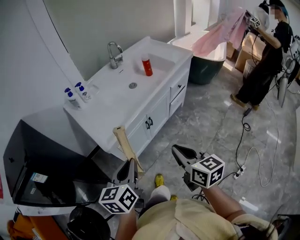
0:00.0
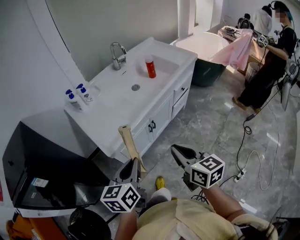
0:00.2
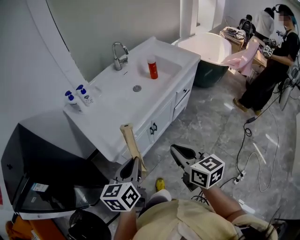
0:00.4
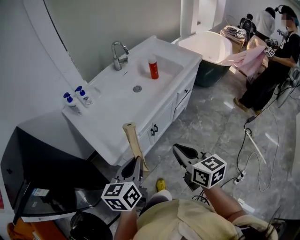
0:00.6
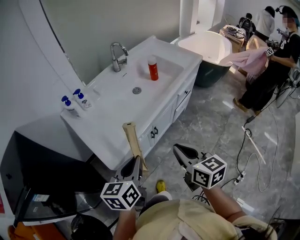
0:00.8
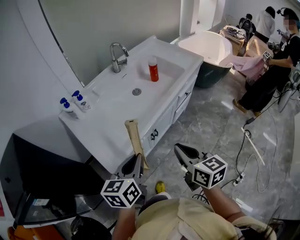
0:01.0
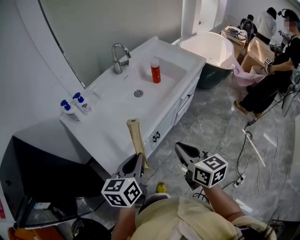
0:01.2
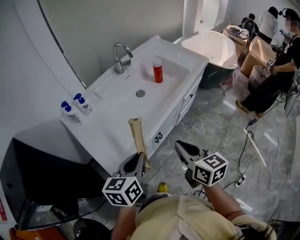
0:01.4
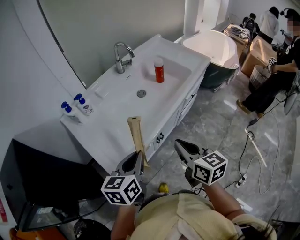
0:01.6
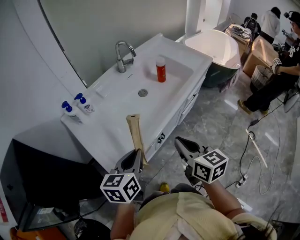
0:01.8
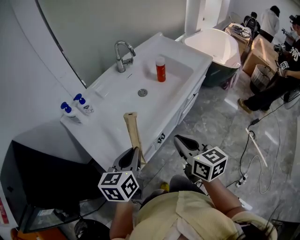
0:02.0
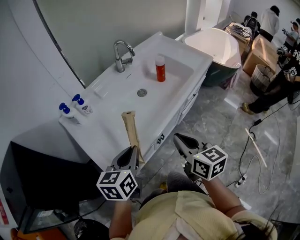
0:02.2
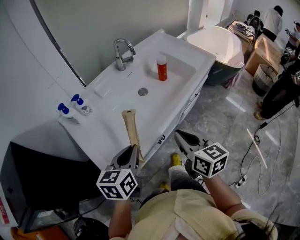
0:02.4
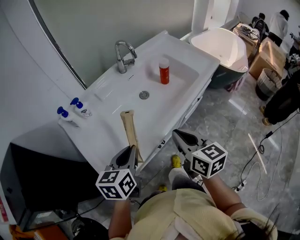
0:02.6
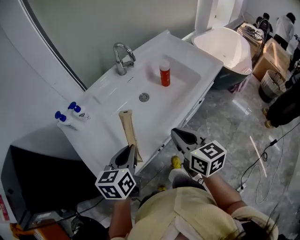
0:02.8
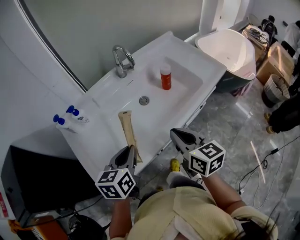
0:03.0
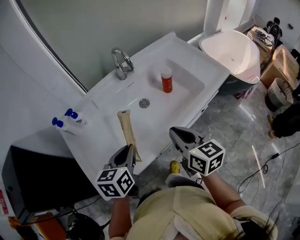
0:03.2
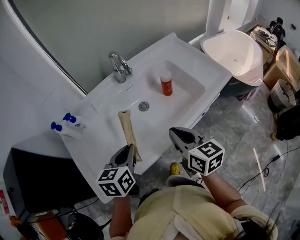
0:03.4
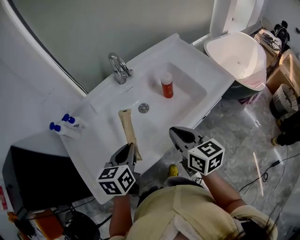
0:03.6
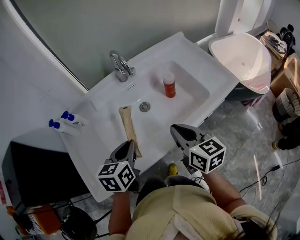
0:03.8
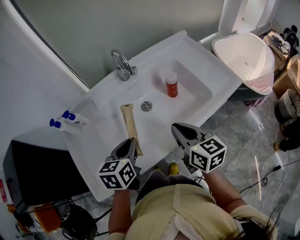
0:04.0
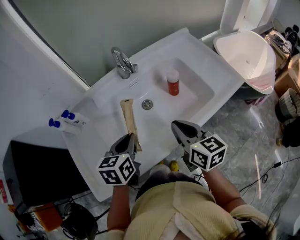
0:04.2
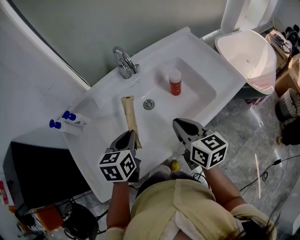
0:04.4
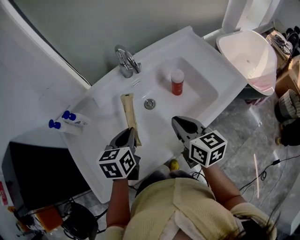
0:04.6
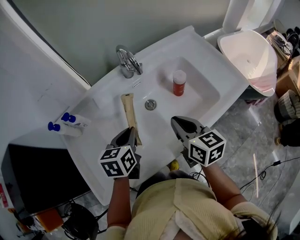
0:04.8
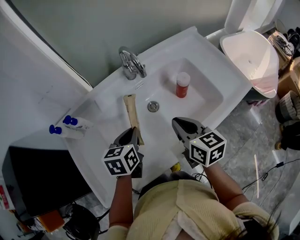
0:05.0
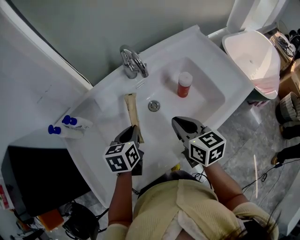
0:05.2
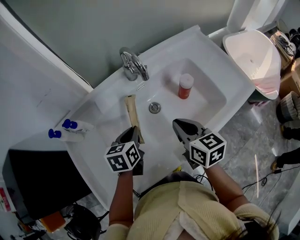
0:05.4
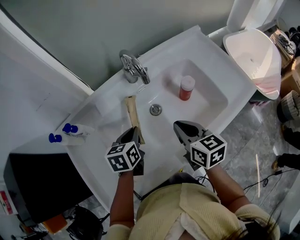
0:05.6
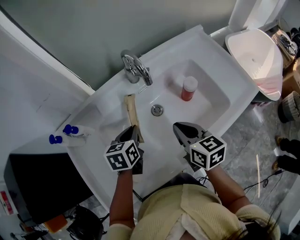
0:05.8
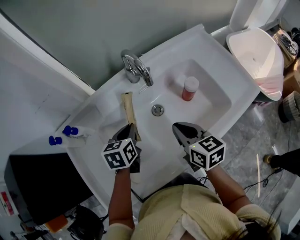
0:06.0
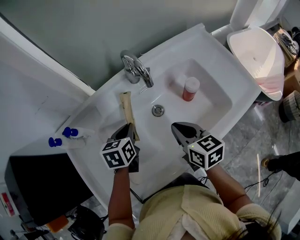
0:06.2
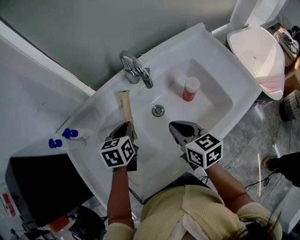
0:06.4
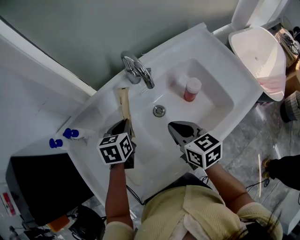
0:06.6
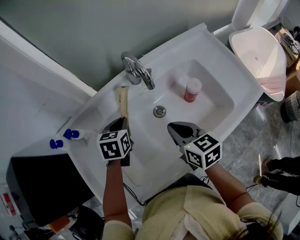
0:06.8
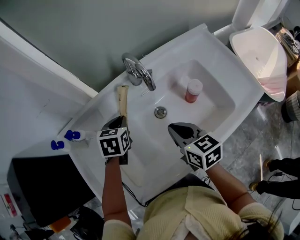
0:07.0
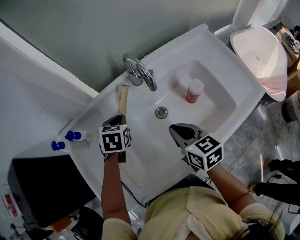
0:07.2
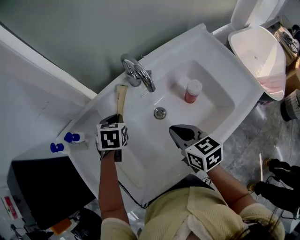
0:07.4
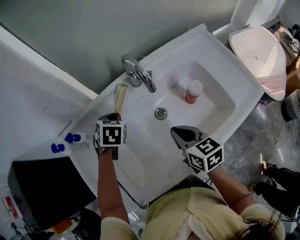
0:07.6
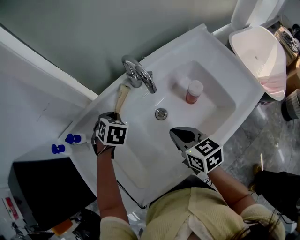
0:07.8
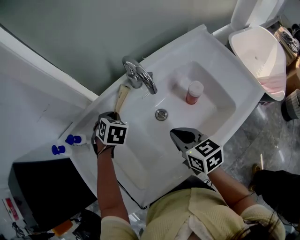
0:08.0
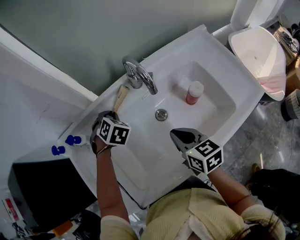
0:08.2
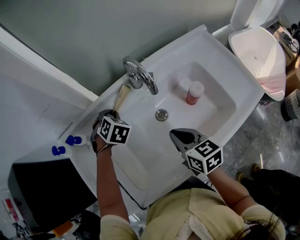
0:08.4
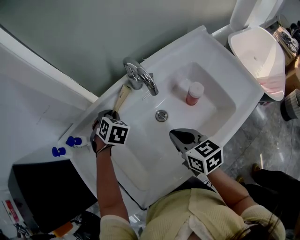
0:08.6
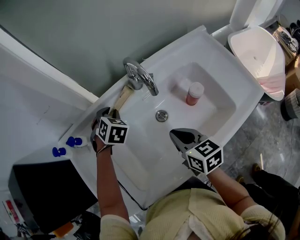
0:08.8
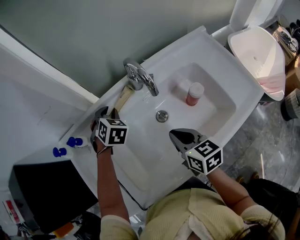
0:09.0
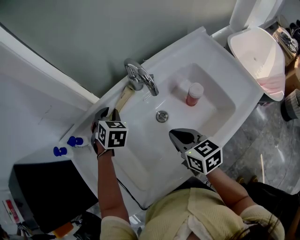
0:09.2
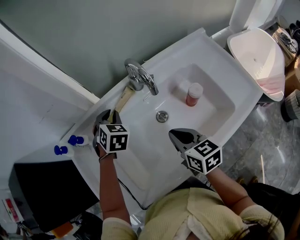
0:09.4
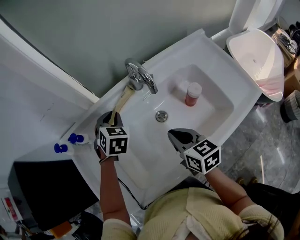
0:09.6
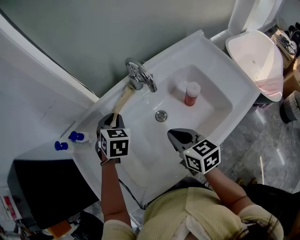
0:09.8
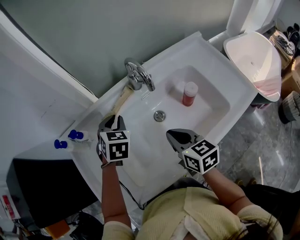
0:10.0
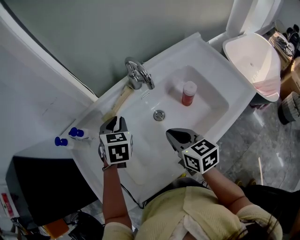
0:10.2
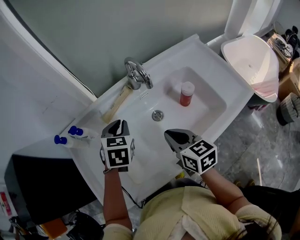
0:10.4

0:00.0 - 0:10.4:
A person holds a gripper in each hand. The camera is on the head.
0:00.0 - 0:01.4: Both grippers travel together forward, roughly 20 cm.
0:01.4 - 0:03.0: The two grippers go approximately 15 cm forward.
0:03.0 - 0:04.4: The grippers both shift forward and to the right by about 15 cm.
0:04.4 - 0:06.0: The grippers both shift forward and downward by roughly 10 cm.
0:06.0 - 0:07.4: The left gripper shifts about 10 cm forward, and turns by approximately 30 degrees.
0:07.4 - 0:09.0: The left gripper goes roughly 5 cm forward, and turns by about 30 degrees.
0:09.0 - 0:10.4: The left gripper shifts about 15 cm backward and upward, and turns by some 20 degrees.

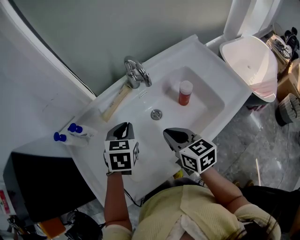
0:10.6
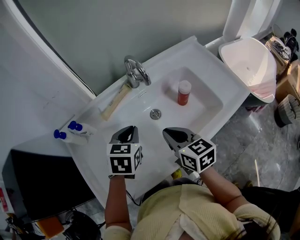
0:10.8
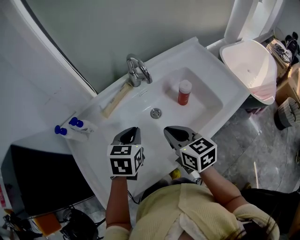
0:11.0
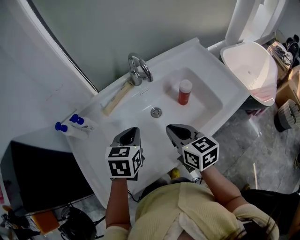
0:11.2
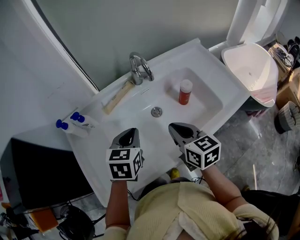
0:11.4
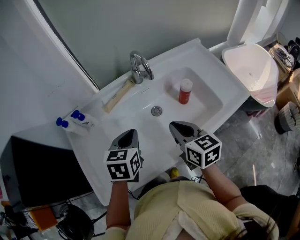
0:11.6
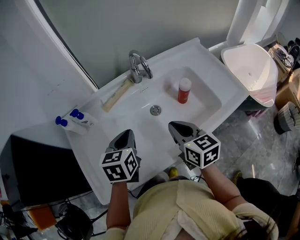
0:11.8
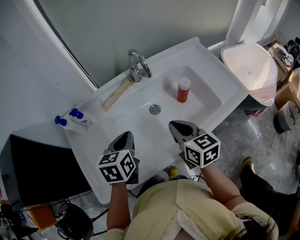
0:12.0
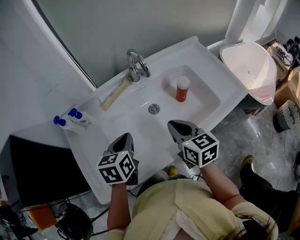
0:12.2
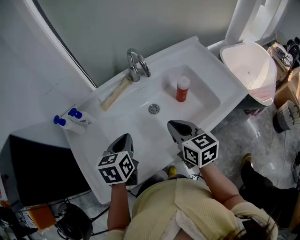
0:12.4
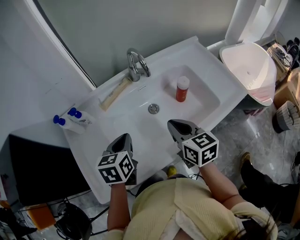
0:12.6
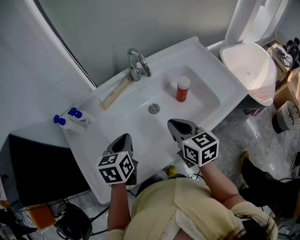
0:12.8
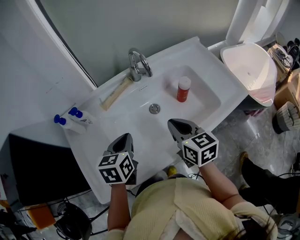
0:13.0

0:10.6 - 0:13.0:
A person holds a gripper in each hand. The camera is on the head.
0:10.6 - 0:11.8: The left gripper travels backward by some 10 cm, and turns by about 20 degrees.
0:11.8 - 0:13.0: There are only small adjustments of the grippers.

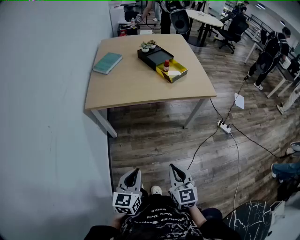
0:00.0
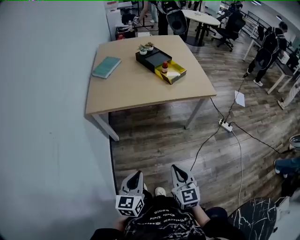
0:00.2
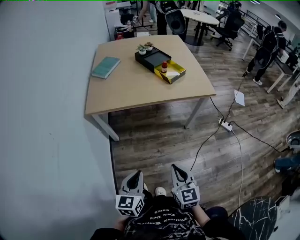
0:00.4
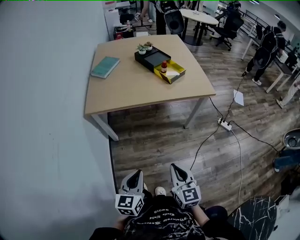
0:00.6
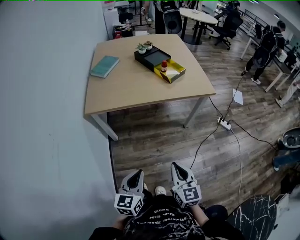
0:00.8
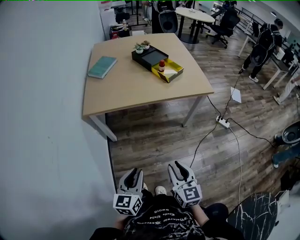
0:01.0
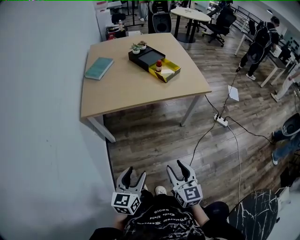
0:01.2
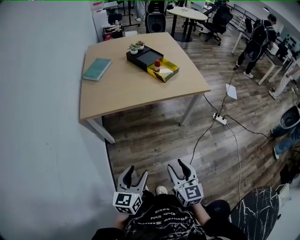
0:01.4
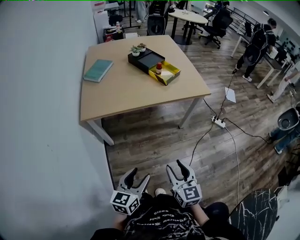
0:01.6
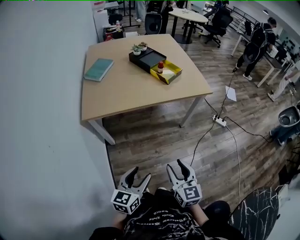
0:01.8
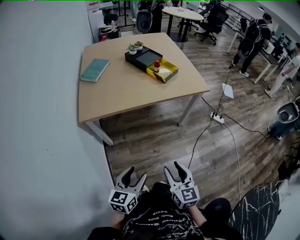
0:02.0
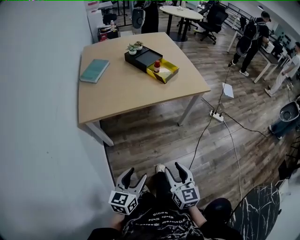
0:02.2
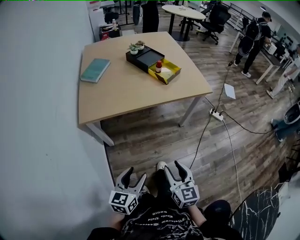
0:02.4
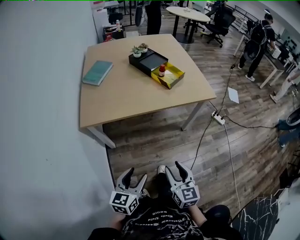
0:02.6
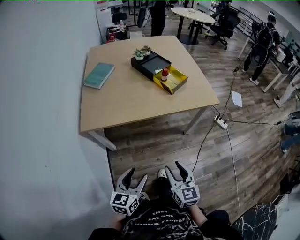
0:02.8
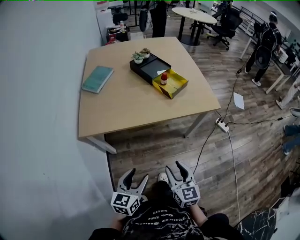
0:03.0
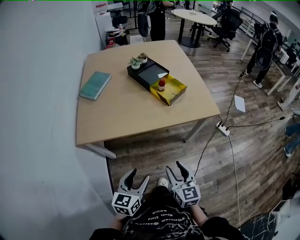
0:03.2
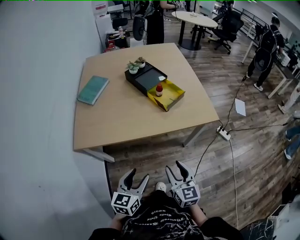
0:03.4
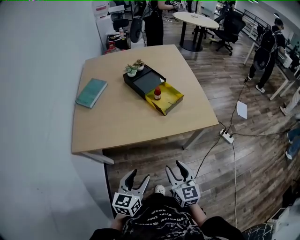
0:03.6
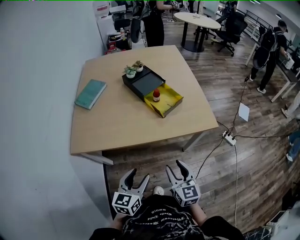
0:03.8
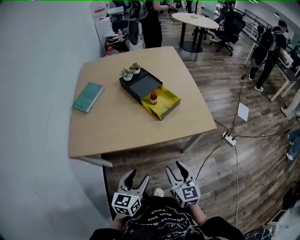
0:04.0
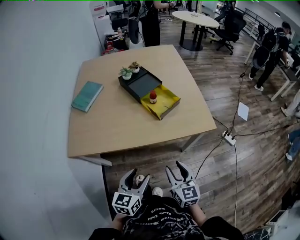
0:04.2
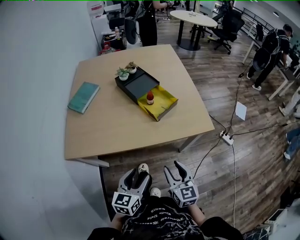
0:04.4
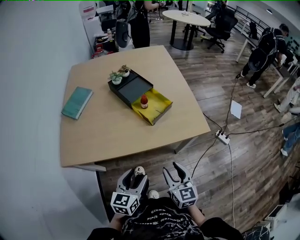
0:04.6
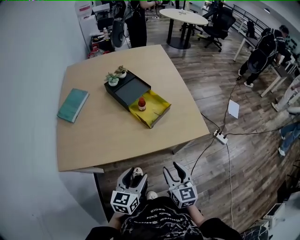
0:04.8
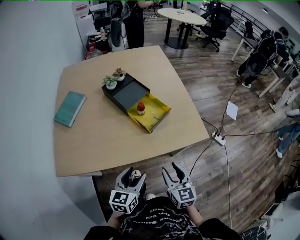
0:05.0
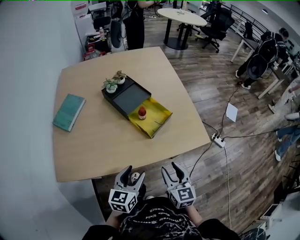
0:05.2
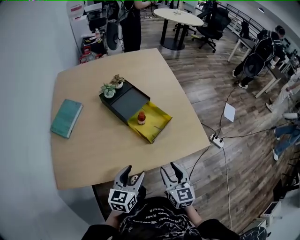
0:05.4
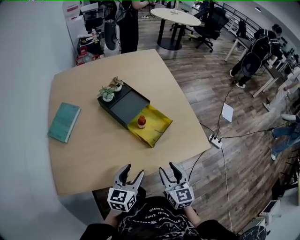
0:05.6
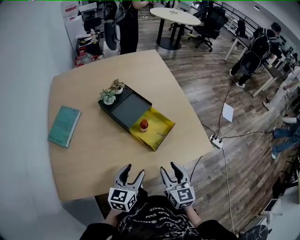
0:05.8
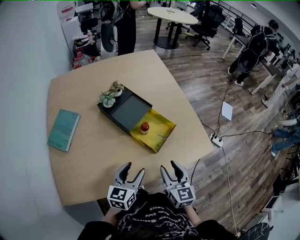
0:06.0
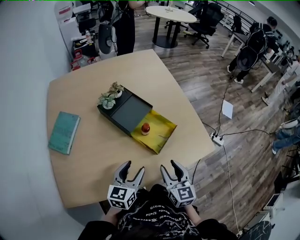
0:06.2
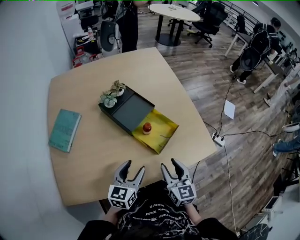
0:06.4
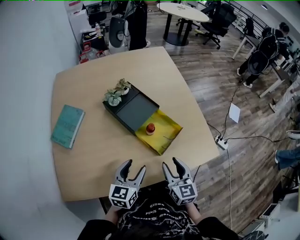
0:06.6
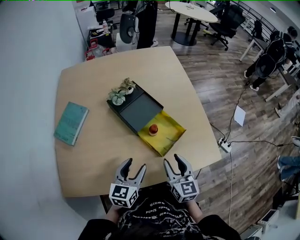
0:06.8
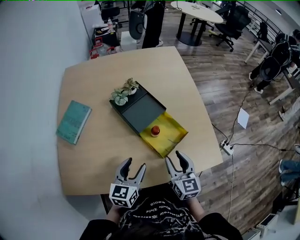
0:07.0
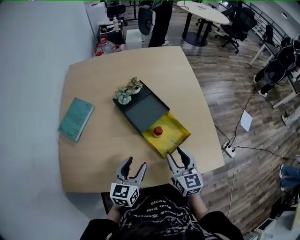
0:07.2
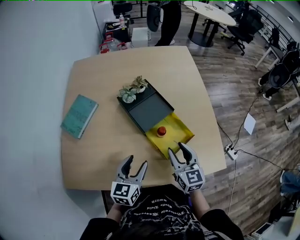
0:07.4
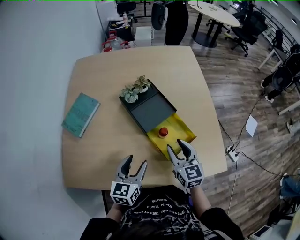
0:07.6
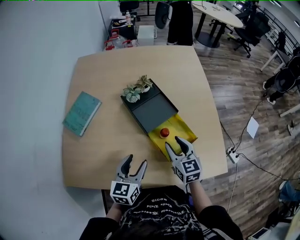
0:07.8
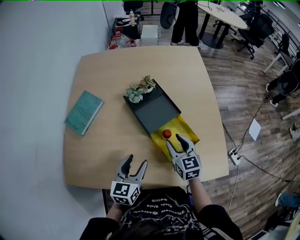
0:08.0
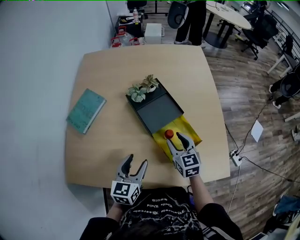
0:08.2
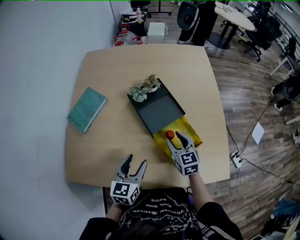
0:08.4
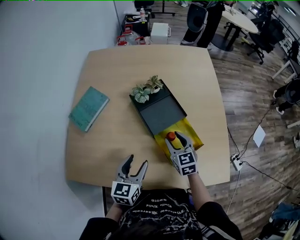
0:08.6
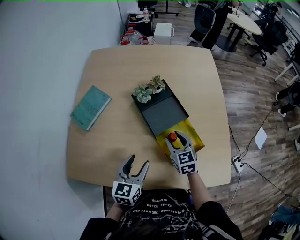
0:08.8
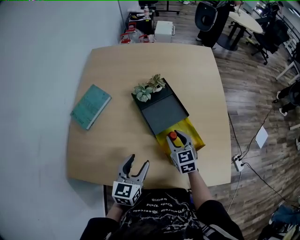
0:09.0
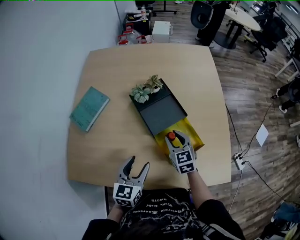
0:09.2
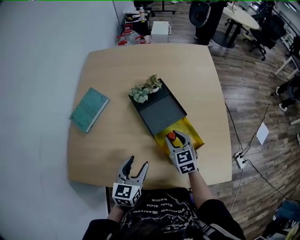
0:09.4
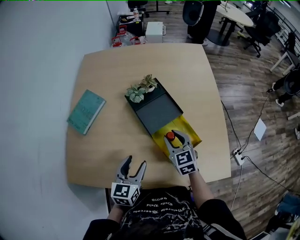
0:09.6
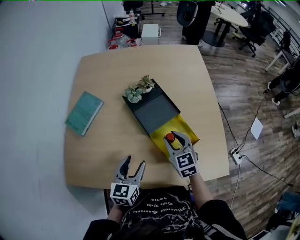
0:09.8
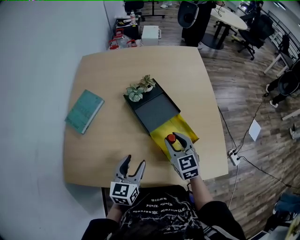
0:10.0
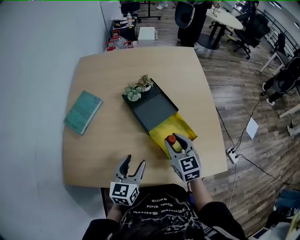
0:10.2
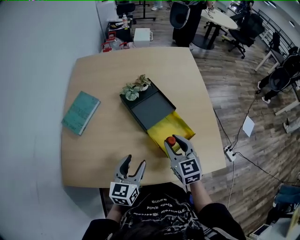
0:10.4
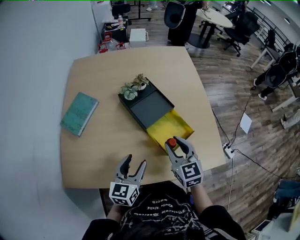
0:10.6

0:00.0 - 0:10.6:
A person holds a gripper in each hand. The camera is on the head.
0:00.0 - 0:01.6: The right gripper opens its fingers. The left gripper opens.
0:01.6 - 0:03.0: The two grippers go some 15 cm forward.
0:03.0 - 0:04.6: The grippers both shift forward and to the right by approximately 20 cm.
0:04.6 - 0:06.0: The grippers both shift forward by some 20 cm.
0:06.0 - 0:07.6: The left gripper shifts some 5 cm forward. Meanwhile the right gripper goes roughly 15 cm forward, and turns by about 20 degrees.
0:07.6 - 0:09.0: The right gripper is displaced forward and downward by some 10 cm.
0:09.0 - 0:10.6: The right gripper moves upward and backward, about 15 cm.
